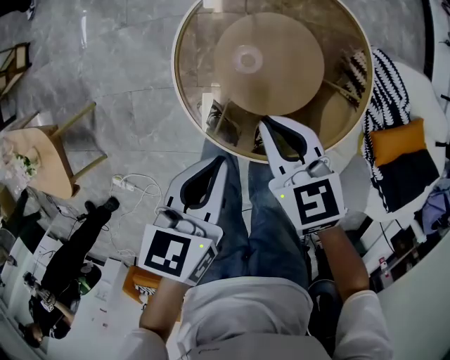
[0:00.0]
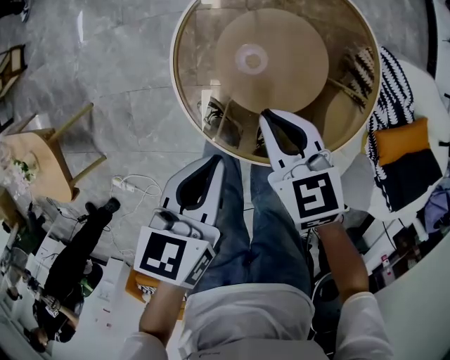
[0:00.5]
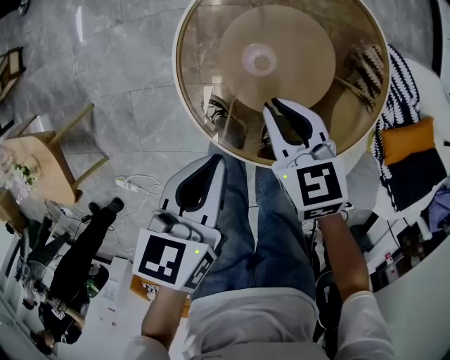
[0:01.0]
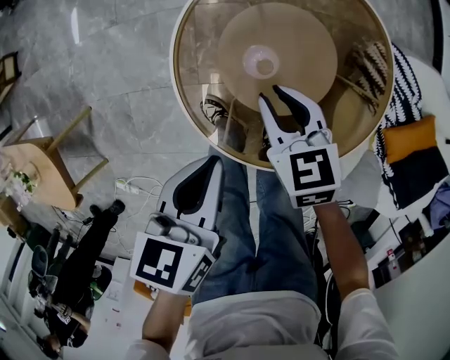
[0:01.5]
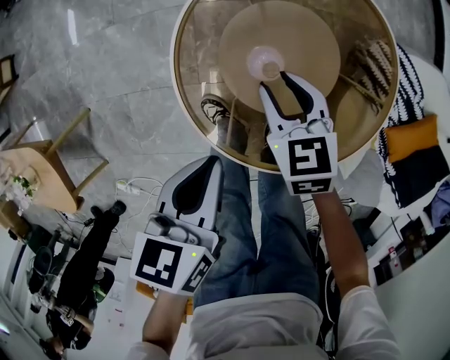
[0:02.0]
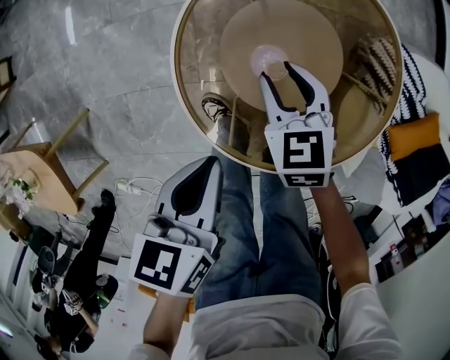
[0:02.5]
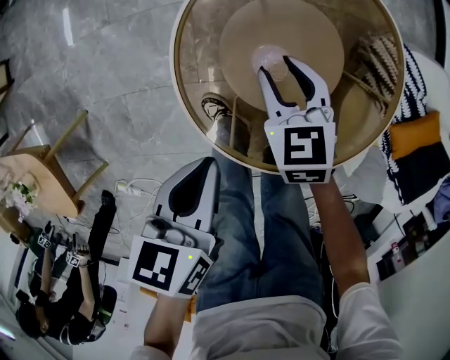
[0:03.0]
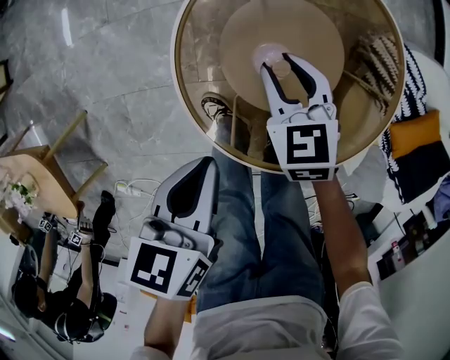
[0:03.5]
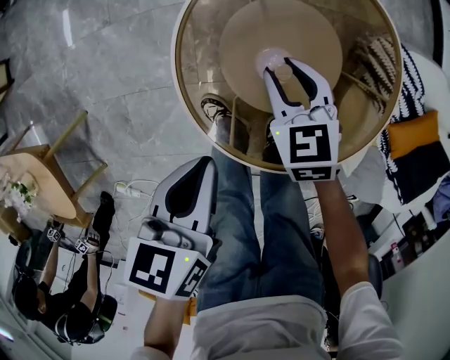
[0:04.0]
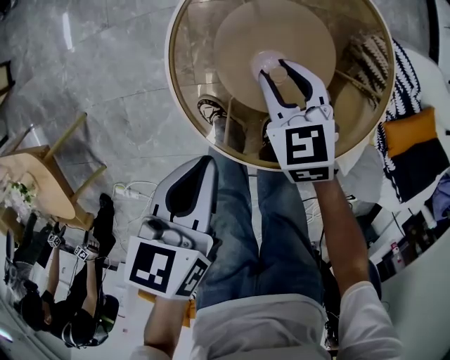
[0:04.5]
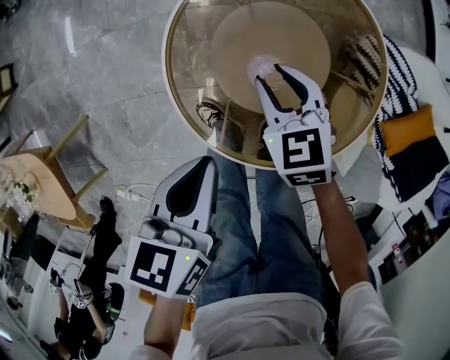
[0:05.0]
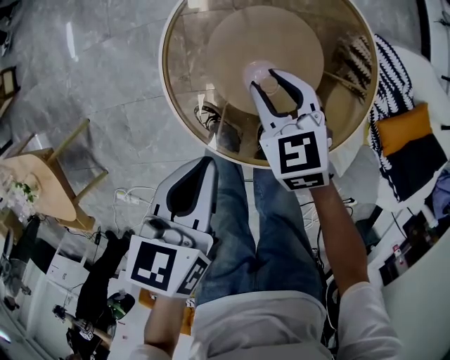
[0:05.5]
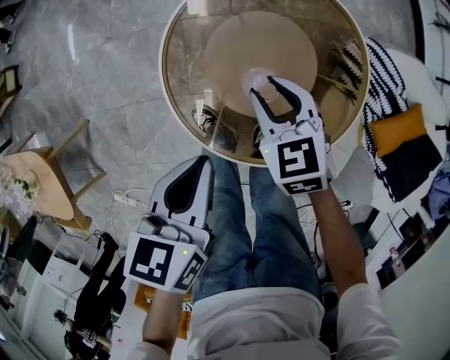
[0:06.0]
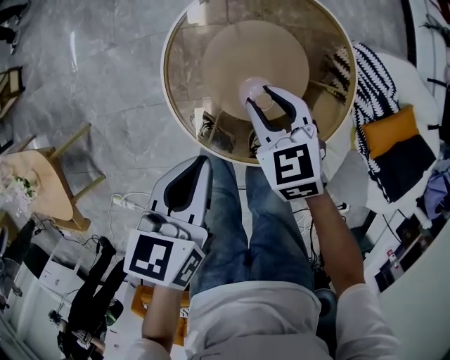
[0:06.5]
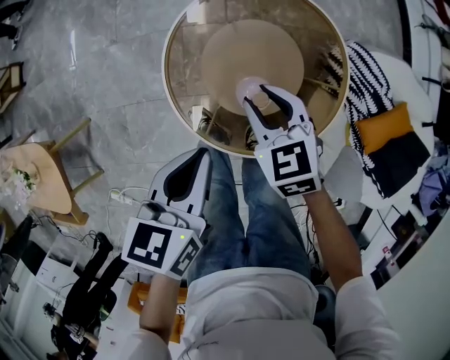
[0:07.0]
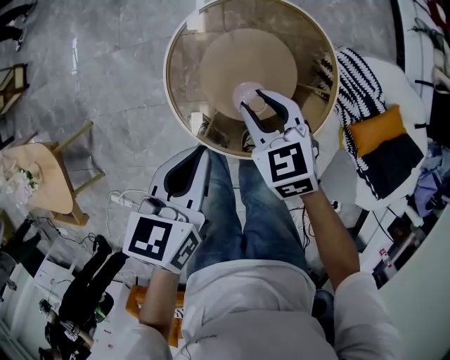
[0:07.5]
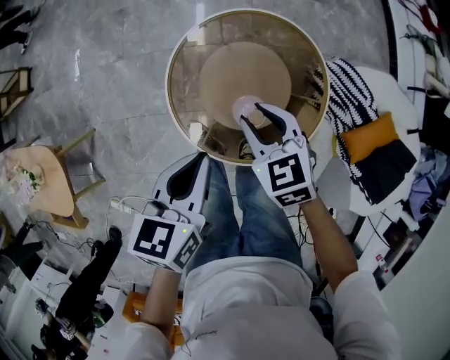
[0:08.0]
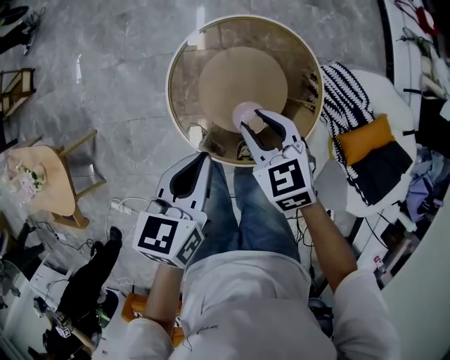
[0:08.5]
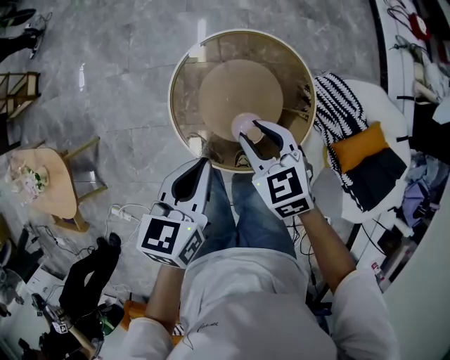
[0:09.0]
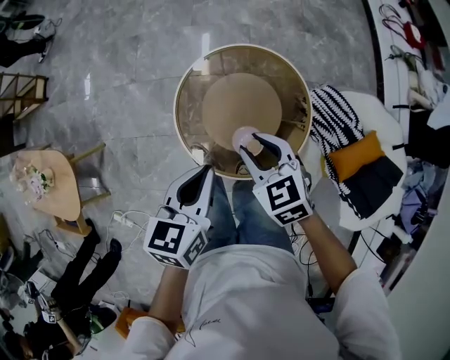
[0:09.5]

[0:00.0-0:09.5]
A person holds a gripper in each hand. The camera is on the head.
0:00.0 to 0:02.0: The right gripper shifts about 15 cm downward and forward, and opens its fingers, while the left gripper moves downward and to the left, some 10 cm.
0:02.0 to 0:04.0: The grippers stay close to where they were, moving slightly.
0:04.0 to 0:05.5: The left gripper ends up roughly 5 cm from where it was. Meanwhile the right gripper changes place by some 5 cm.
0:05.5 to 0:07.5: Both grippers move upward, roughly 10 cm.
0:07.5 to 0:09.5: The two grippers go roughly 10 cm upward.

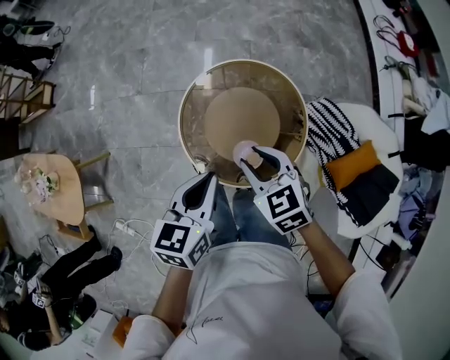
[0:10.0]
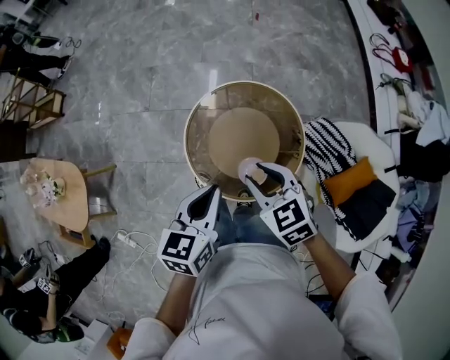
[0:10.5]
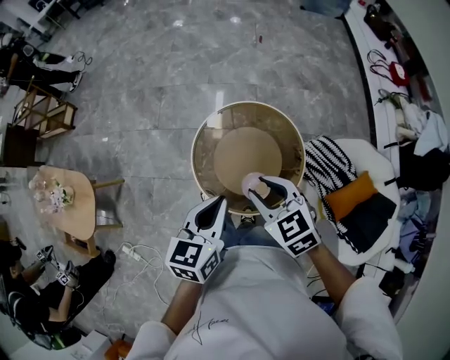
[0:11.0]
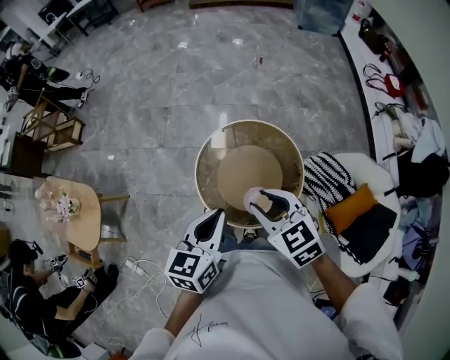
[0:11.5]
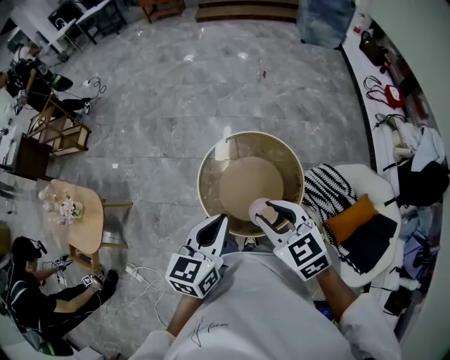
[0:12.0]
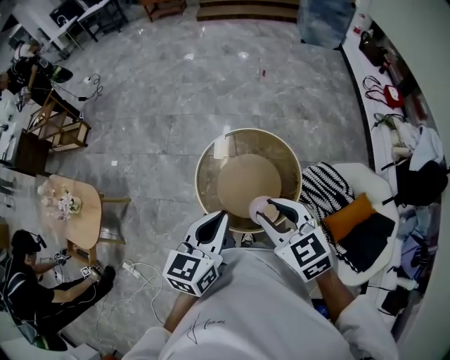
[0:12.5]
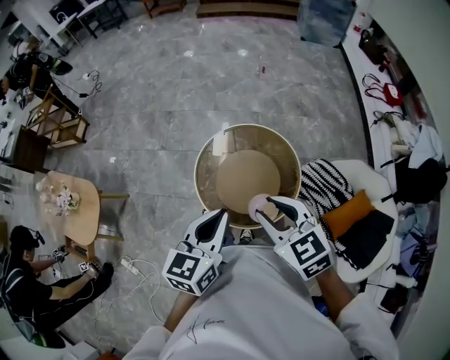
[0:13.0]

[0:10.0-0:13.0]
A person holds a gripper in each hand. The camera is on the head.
0:10.0 to 0:11.5: Both grippers travel together upward, approximately 10 cm.
0:11.5 to 0:13.0: The right gripper goes about 5 cm backward, while the left gripper shifts by some 5 cm.

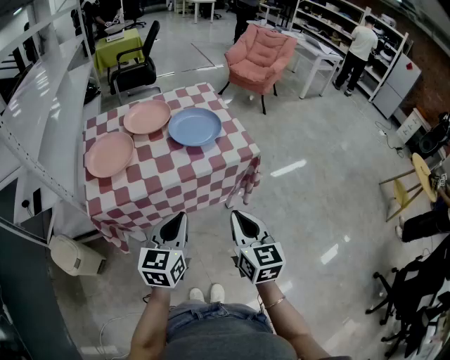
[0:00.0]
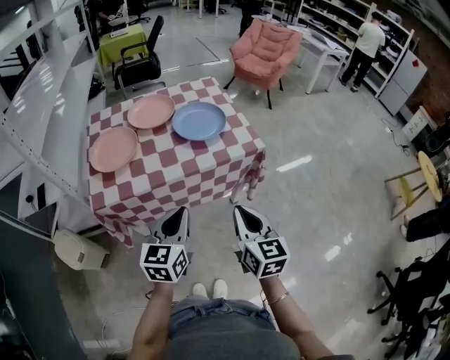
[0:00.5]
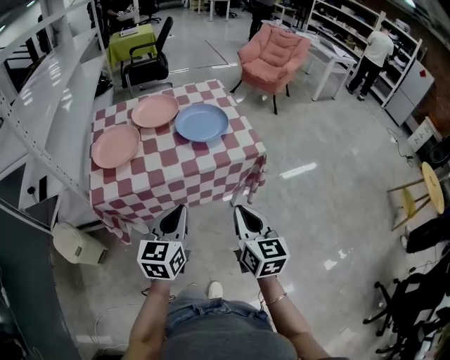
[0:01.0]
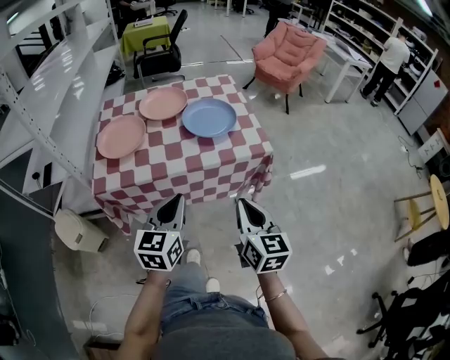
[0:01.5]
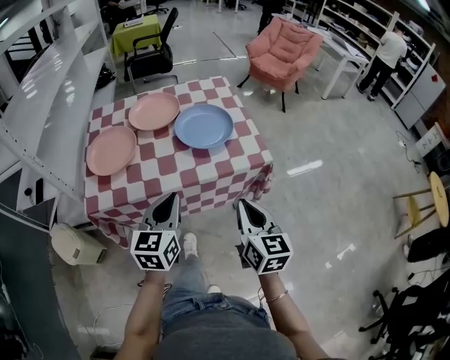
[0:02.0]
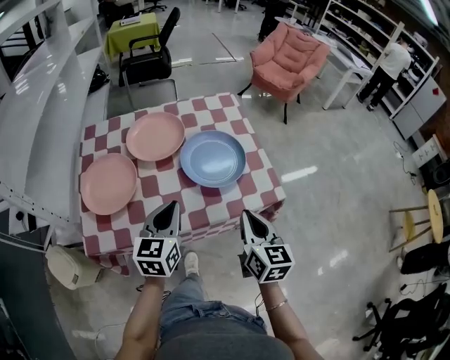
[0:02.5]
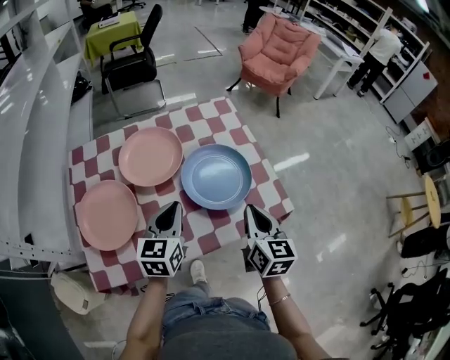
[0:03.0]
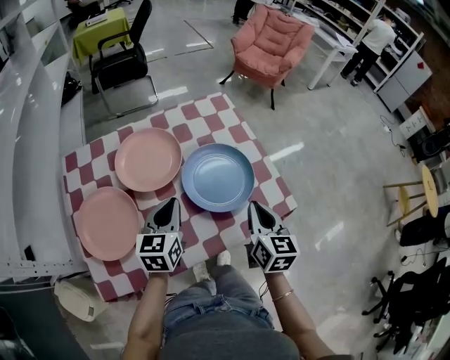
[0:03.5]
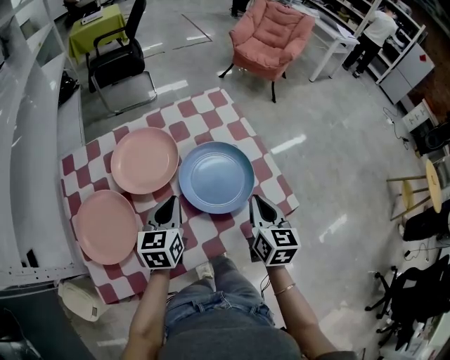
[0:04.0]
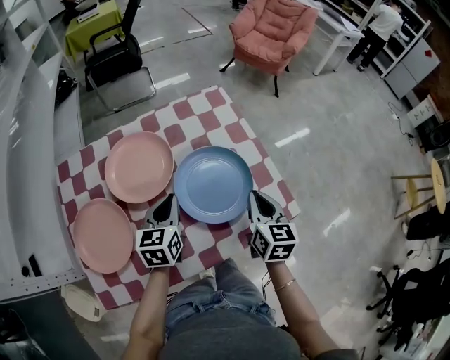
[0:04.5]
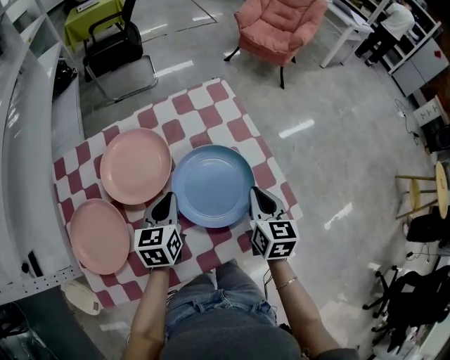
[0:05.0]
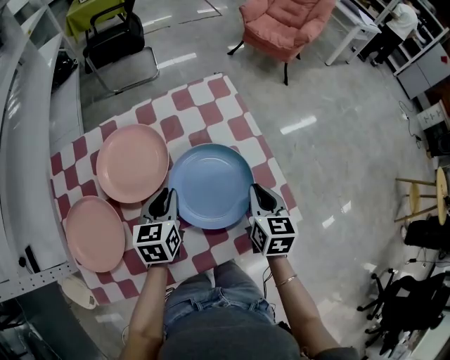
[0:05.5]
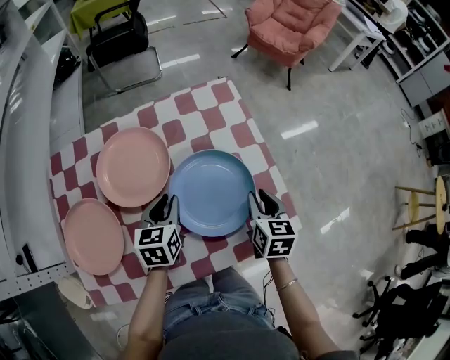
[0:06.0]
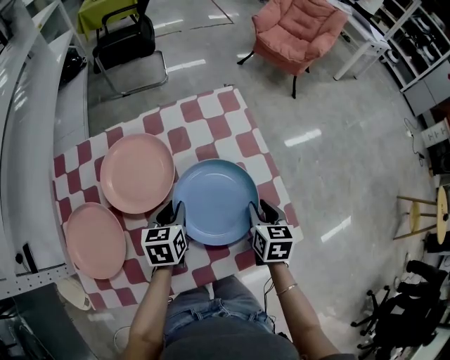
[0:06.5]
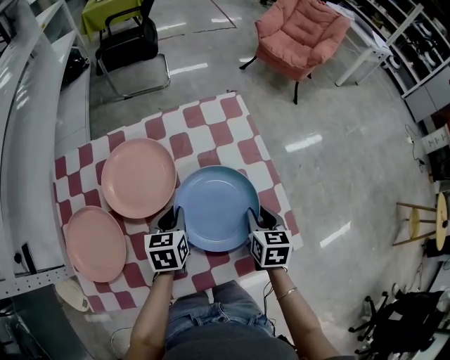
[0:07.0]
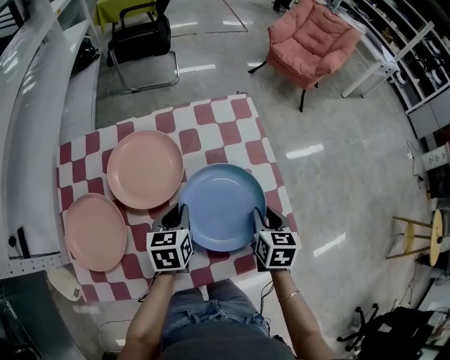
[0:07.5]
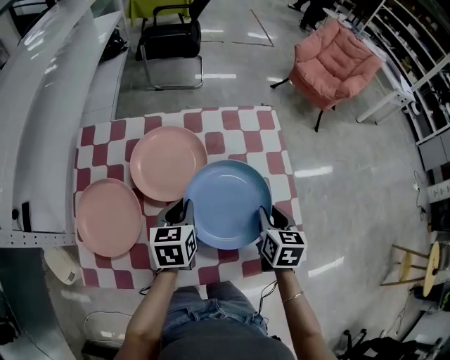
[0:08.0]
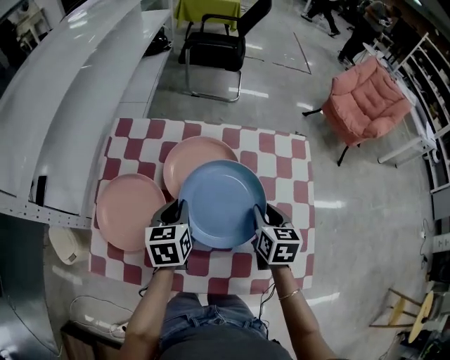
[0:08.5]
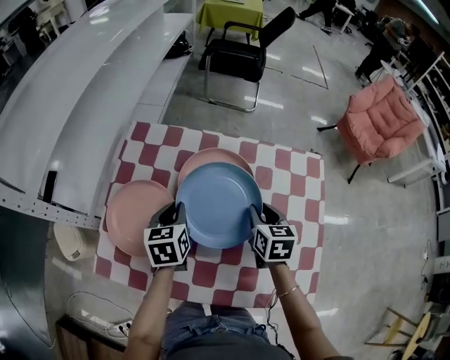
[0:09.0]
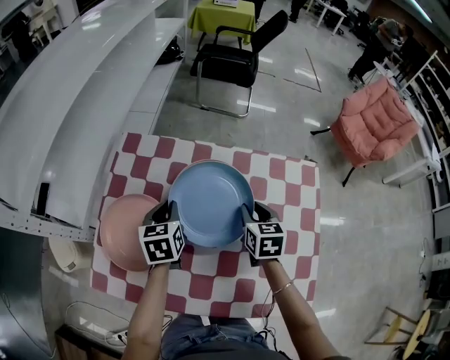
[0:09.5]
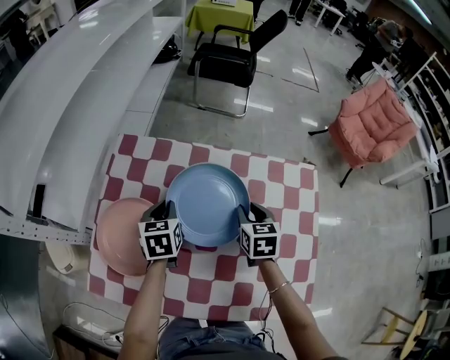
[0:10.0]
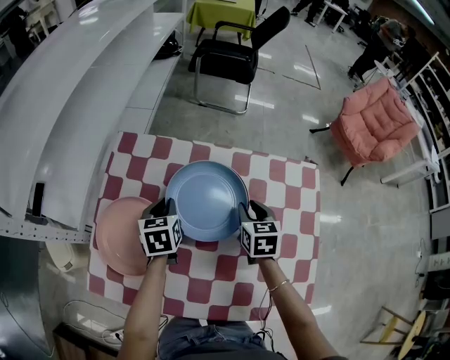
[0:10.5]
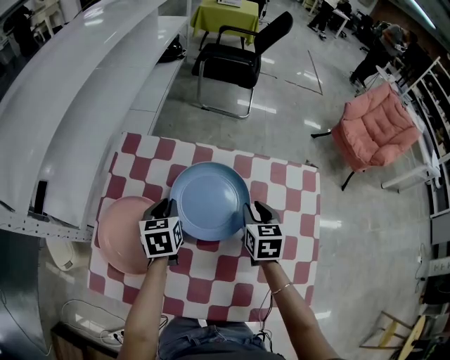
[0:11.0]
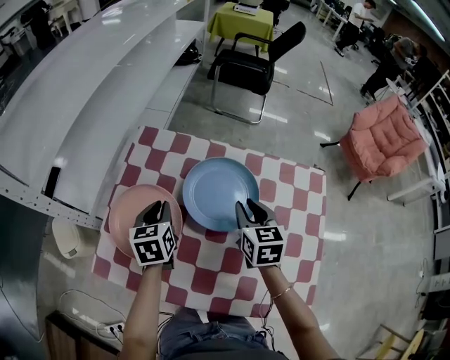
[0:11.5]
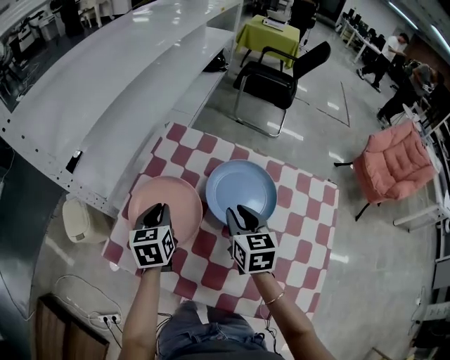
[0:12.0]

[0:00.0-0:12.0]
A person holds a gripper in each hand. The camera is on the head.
0:00.0 to 0:02.0: Both grippers move forward, approximately 10 cm.
0:02.0 to 0:04.0: Both grippers travel together forward, some 30 cm.
0:04.0 to 0:06.0: Both grippers move forward and downward, about 10 cm.
0:06.0 to 0:08.0: The right gripper moves approximately 5 cm.
0:08.0 to 0:10.0: The left gripper travels to the left and forward by approximately 20 cm, and turns by approximately 20 degrees, while the right gripper goes some 25 cm forward and to the left, and changes its angle by about 20 degrees.
0:10.0 to 0:12.0: The right gripper goes some 15 cm to the left and upward, and rotates roughly 20 degrees. The left gripper is displaced to the left and backward by approximately 15 cm.

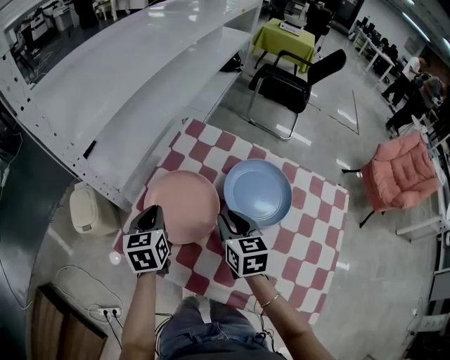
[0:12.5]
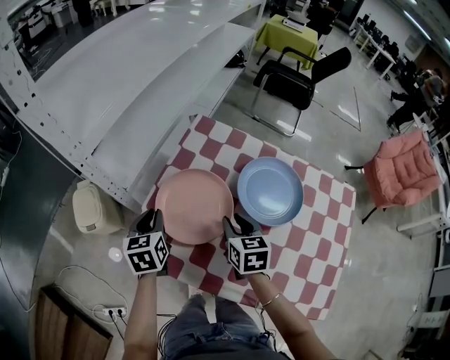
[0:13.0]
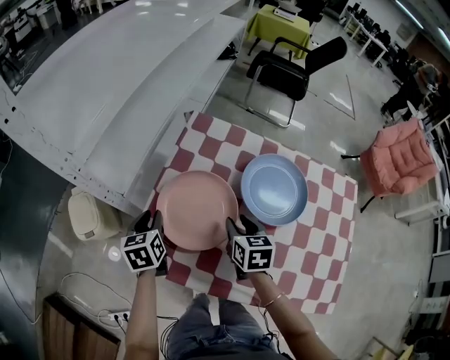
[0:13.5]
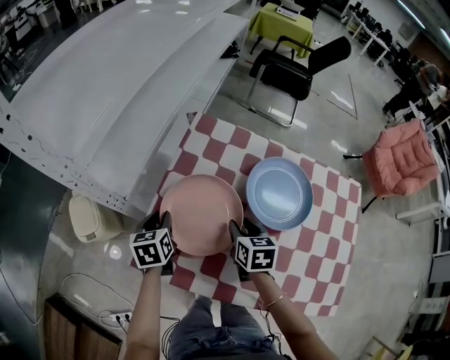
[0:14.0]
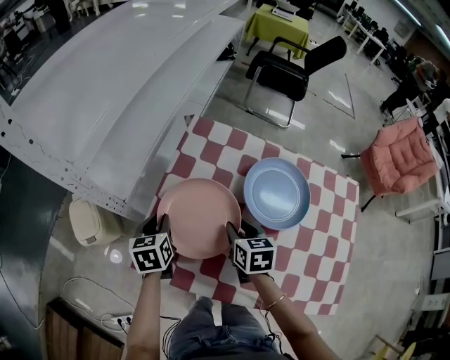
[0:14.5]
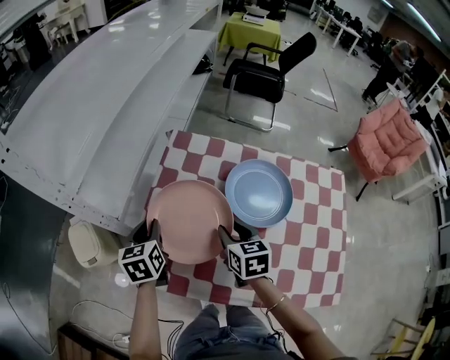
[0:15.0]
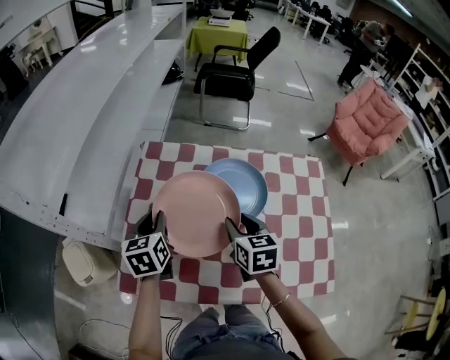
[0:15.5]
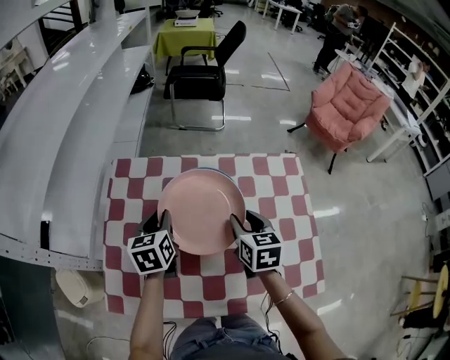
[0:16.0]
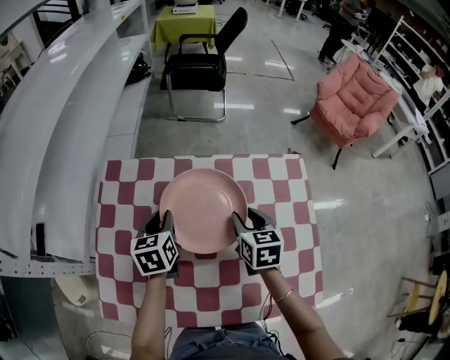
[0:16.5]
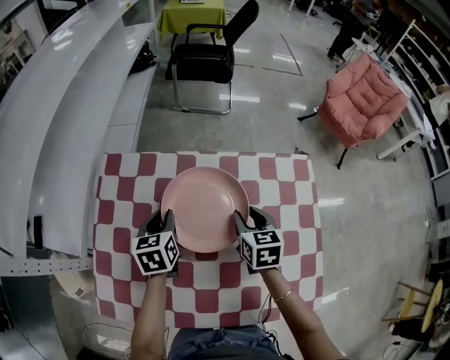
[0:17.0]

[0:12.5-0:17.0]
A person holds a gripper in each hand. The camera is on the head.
0:12.5 to 0:14.5: The left gripper moves downward and to the left, about 10 cm, while the right gripper is displaced downward by some 10 cm.
0:14.5 to 0:17.0: The right gripper is displaced to the right by approximately 25 cm. Meanwhile the left gripper heads to the right and forward, covering roughly 30 cm.
